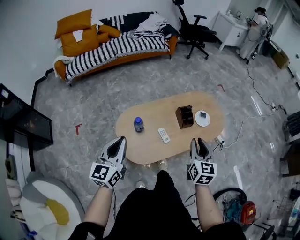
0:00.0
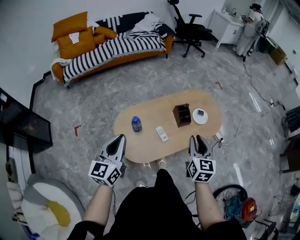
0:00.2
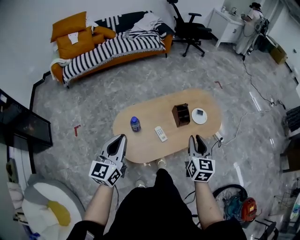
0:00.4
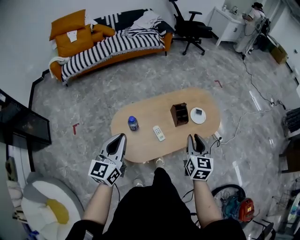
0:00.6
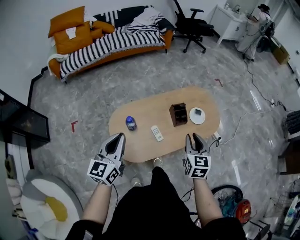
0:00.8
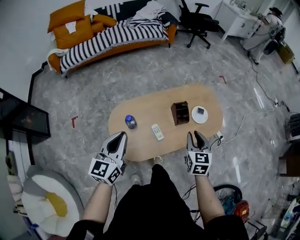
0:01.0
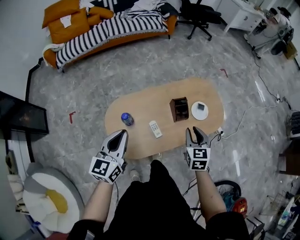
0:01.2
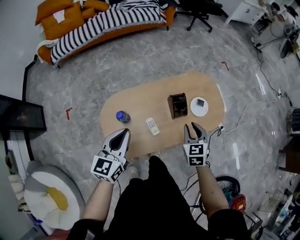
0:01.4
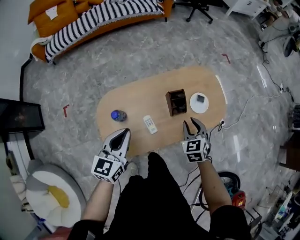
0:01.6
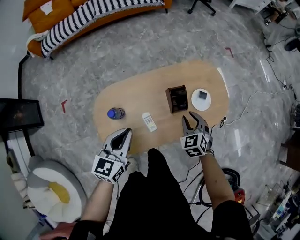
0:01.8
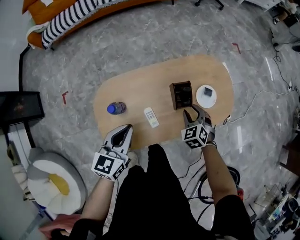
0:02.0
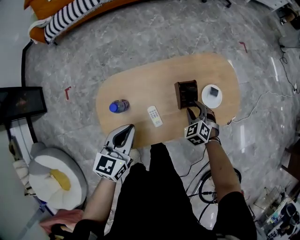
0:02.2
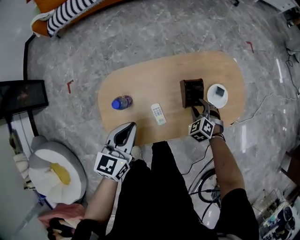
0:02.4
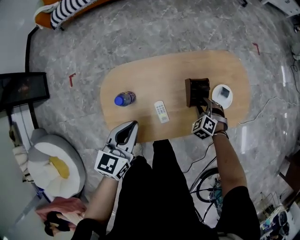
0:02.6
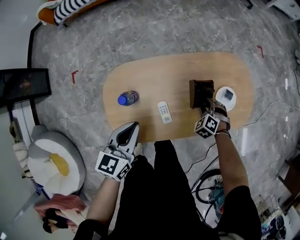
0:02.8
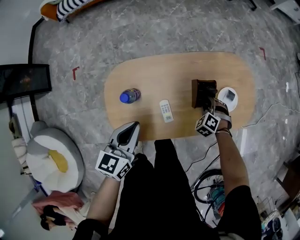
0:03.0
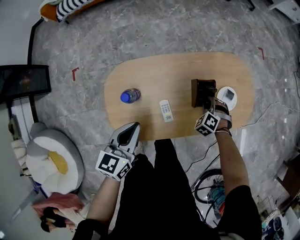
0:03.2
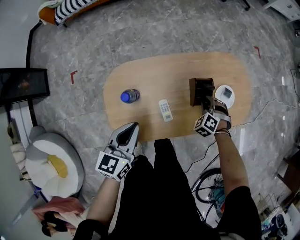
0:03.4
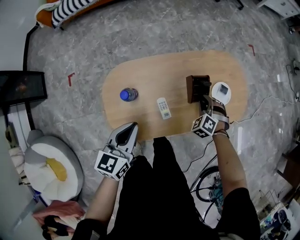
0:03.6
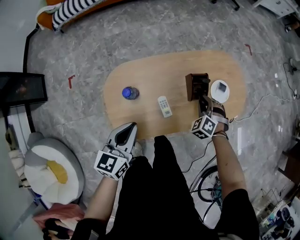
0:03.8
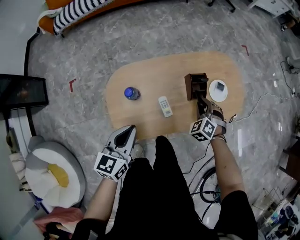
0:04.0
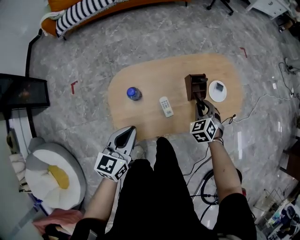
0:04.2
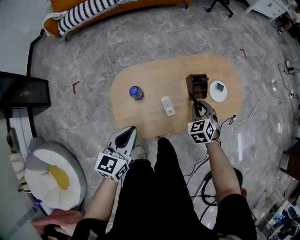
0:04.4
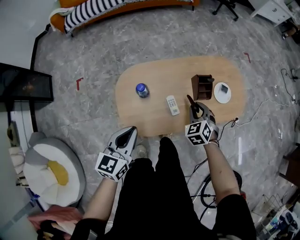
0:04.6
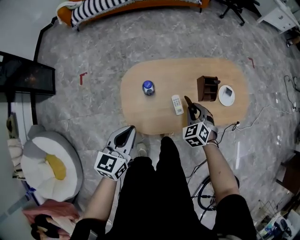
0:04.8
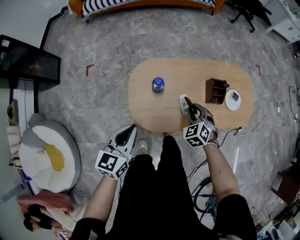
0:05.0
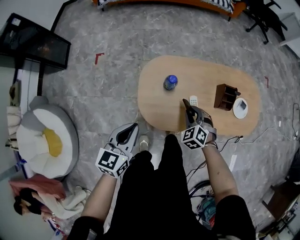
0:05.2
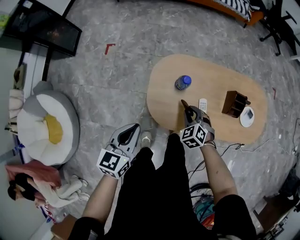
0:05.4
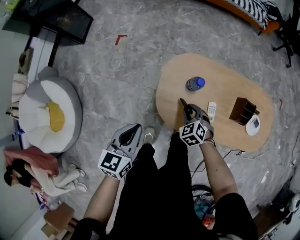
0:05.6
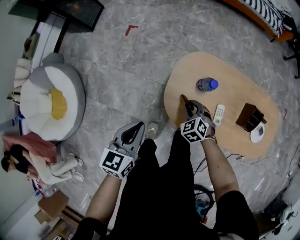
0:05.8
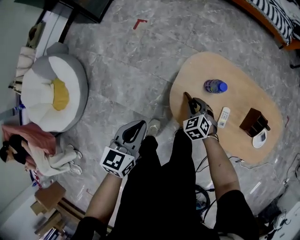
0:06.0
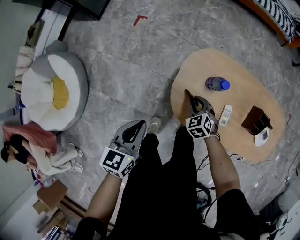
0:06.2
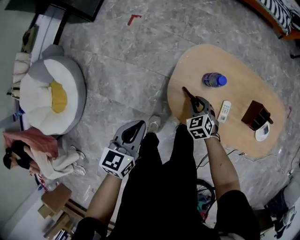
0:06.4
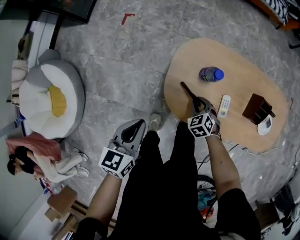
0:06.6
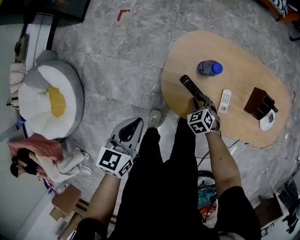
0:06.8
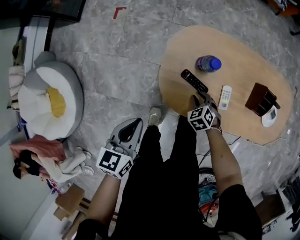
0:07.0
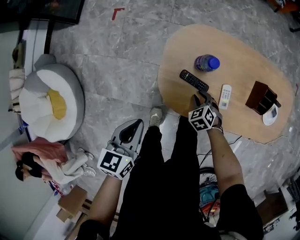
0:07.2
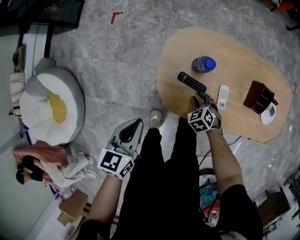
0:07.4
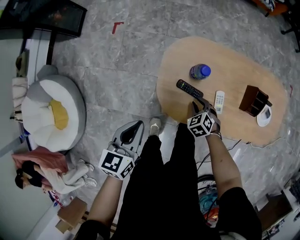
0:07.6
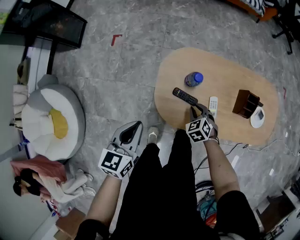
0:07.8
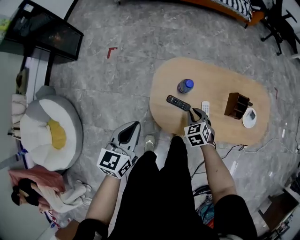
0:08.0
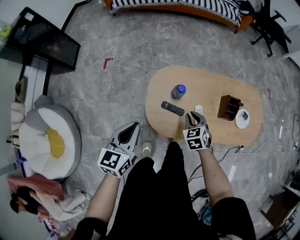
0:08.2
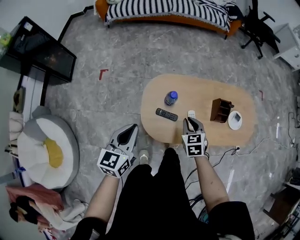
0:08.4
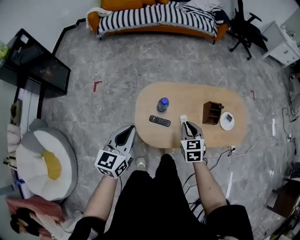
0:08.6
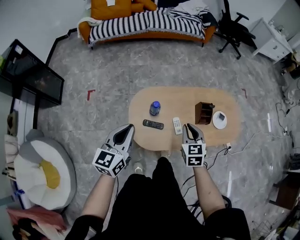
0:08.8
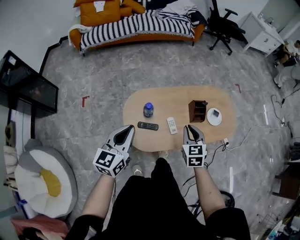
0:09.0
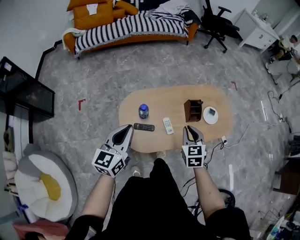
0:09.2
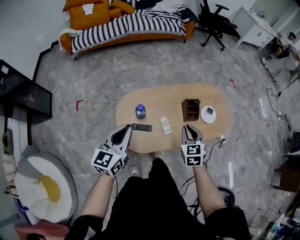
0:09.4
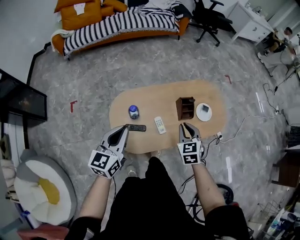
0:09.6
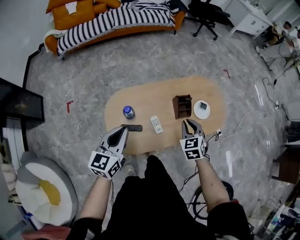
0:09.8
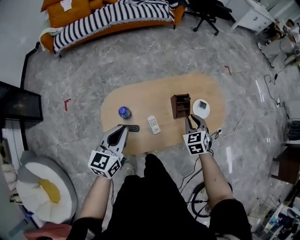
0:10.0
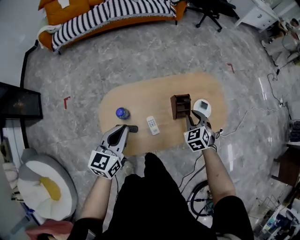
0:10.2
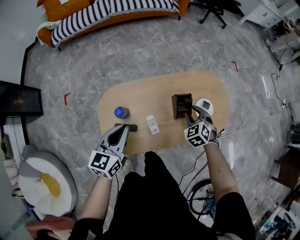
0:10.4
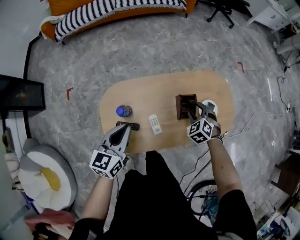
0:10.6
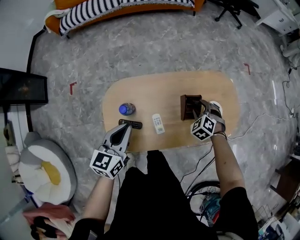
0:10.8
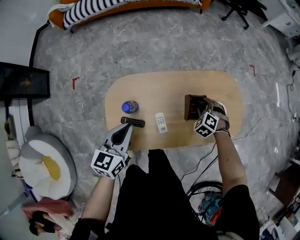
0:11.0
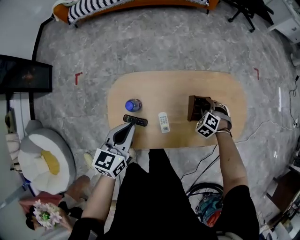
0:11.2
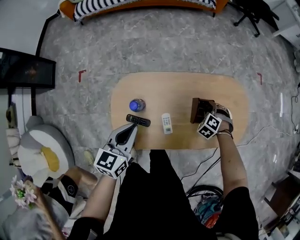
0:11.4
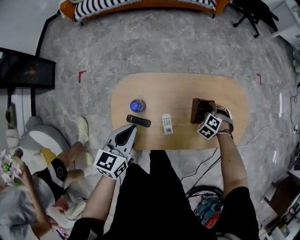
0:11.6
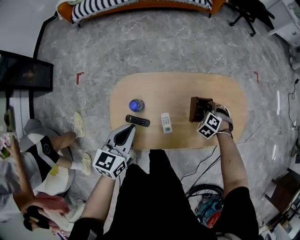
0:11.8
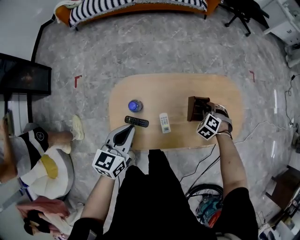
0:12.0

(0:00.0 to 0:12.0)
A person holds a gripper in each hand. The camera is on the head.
0:00.0 - 0:01.6: The left gripper is displaced forward, to the right and downward by about 20 cm; the right gripper is displaced forward and downward by about 25 cm, and turns by roughly 40 degrees.
0:01.6 - 0:03.0: The left gripper shifts approximately 10 cm downward; the right gripper heads downward, covering approximately 20 cm, and rotates around the line of its fingers by approximately 50 degrees, counterclockwise from behind.
0:03.0 - 0:04.4: The right gripper is displaced upward and backward by about 20 cm, and changes its angle by roughly 40 degrees. Meanwhile the left gripper goes roughly 10 cm backward and upward.
0:04.4 - 0:06.0: The right gripper shifts by some 40 cm, and changes its angle by about 50 degrees. The left gripper moves approximately 25 cm, and turns by roughly 40 degrees.
0:06.0 - 0:07.6: The right gripper moves to the right and downward, about 10 cm. Meanwhile the left gripper ends up roughly 5 cm from where it was.
0:07.6 - 0:09.0: The right gripper is displaced upward by roughly 30 cm, and turns by about 50 degrees. The left gripper heads upward, covering approximately 20 cm, and rotates roughly 30 degrees.
0:09.0 - 0:10.4: The grippers both shift forward, to the right and downward by about 20 cm. The right gripper rotates about 30 degrees.
0:10.4 - 0:12.0: The right gripper travels downward by roughly 10 cm, and swivels approximately 30 degrees.

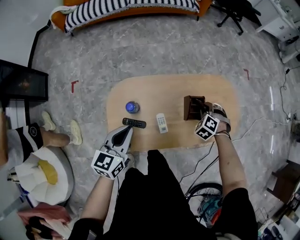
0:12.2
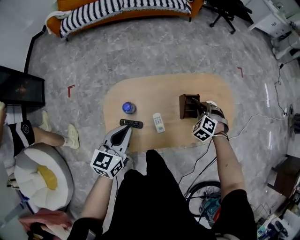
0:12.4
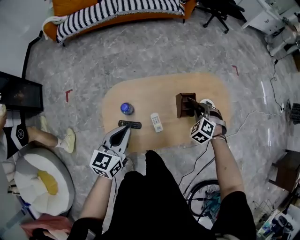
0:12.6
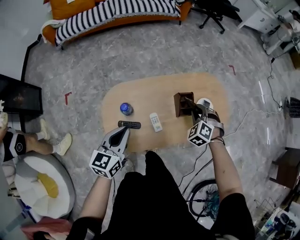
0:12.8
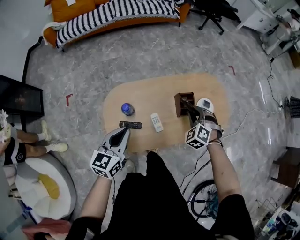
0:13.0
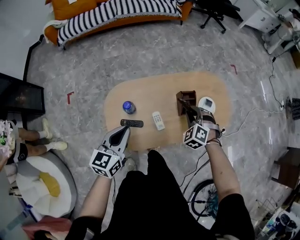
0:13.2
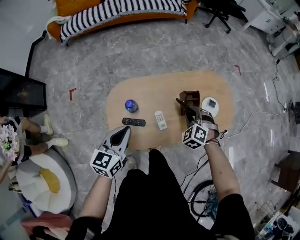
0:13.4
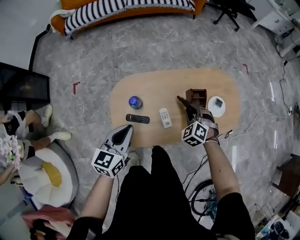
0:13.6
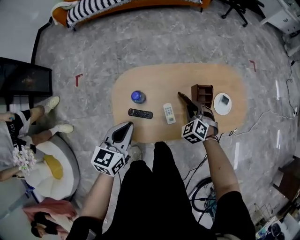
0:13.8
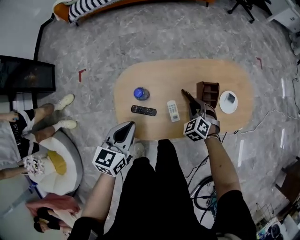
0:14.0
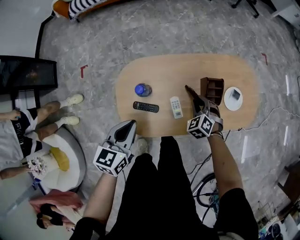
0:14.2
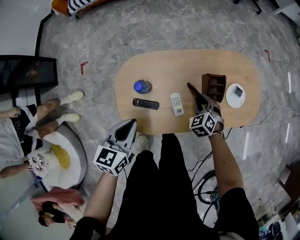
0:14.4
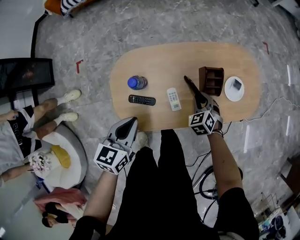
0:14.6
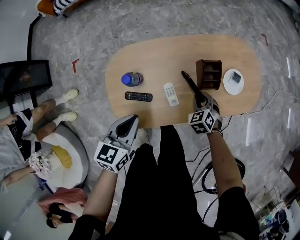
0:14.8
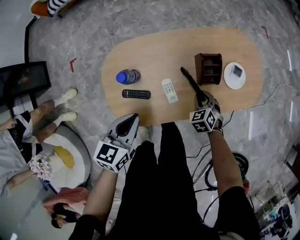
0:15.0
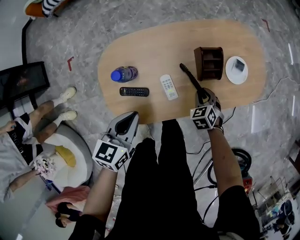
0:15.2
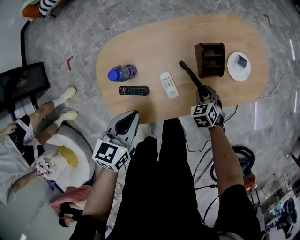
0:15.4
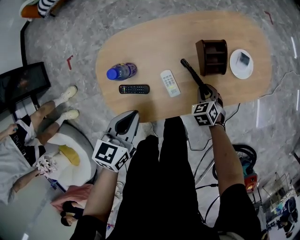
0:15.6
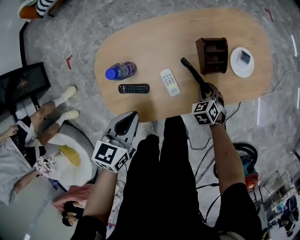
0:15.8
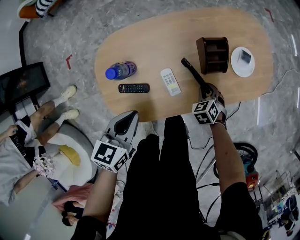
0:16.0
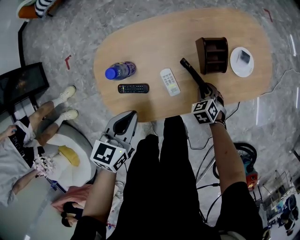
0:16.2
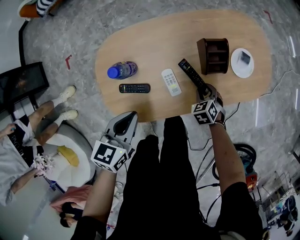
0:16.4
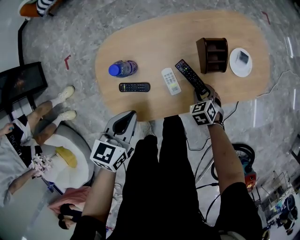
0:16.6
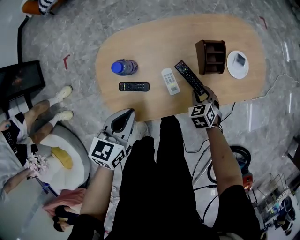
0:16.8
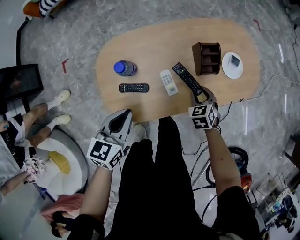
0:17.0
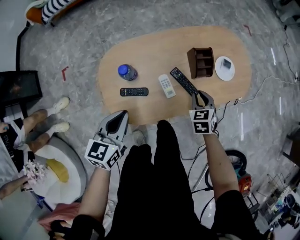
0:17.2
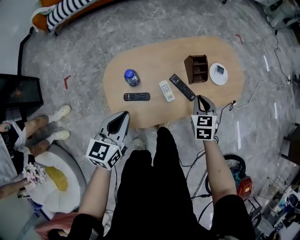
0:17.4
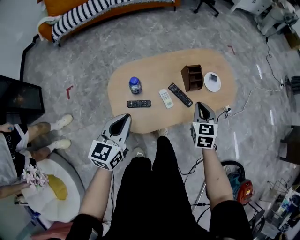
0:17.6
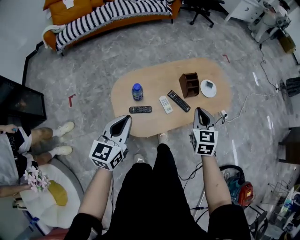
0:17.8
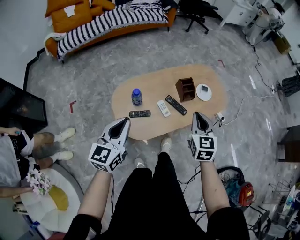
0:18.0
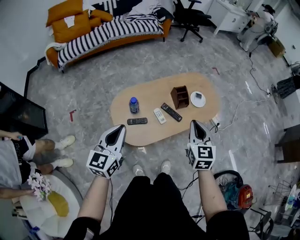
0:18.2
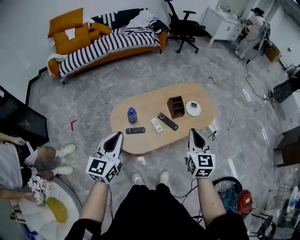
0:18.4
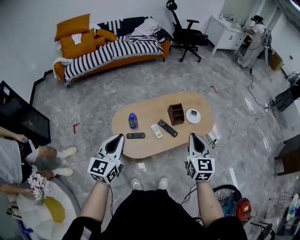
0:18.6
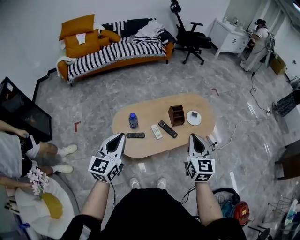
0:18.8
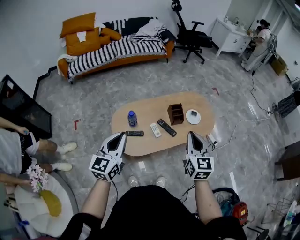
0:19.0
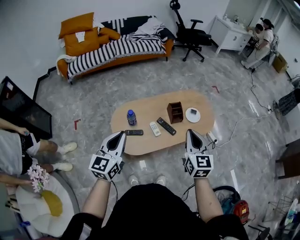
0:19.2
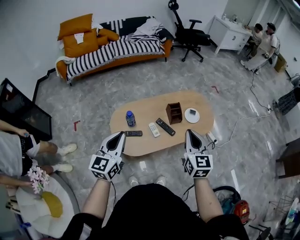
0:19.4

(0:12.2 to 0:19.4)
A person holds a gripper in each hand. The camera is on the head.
0:12.2 - 0:13.6: The right gripper goes about 10 cm backward and to the left.
0:13.6 - 0:15.0: The left gripper shifts about 10 cm downward and to the right. The right gripper goes roughly 15 cm downward and to the right, and swivels about 30 degrees.
0:15.0 - 0:16.6: The right gripper travels downward by approximately 5 cm.
0:16.6 - 0:18.0: The right gripper travels upward by approximately 40 cm, tips its fingers upward by roughly 40 degrees, and closes its fingers. The left gripper travels upward and backward by approximately 25 cm, and rotates roughly 30 degrees.
0:18.0 - 0:19.4: Both grippers travel together upward and to the right, roughly 10 cm.

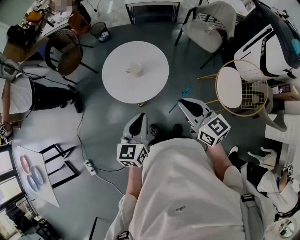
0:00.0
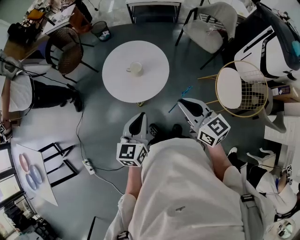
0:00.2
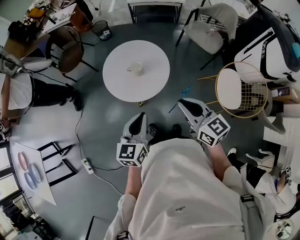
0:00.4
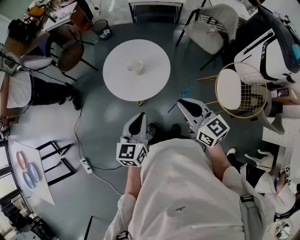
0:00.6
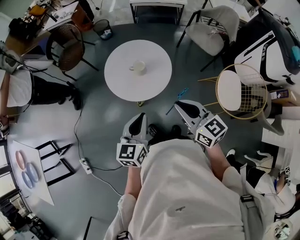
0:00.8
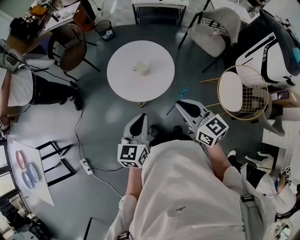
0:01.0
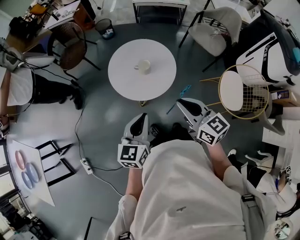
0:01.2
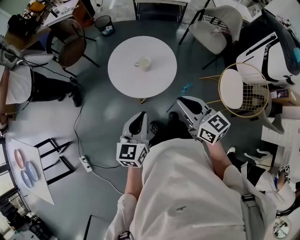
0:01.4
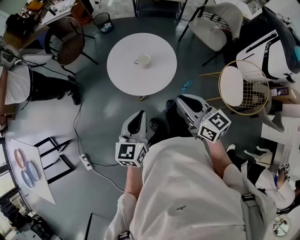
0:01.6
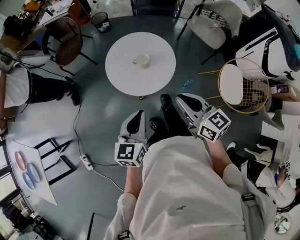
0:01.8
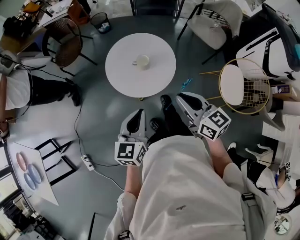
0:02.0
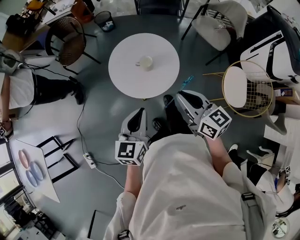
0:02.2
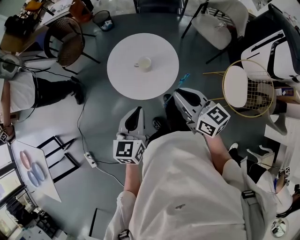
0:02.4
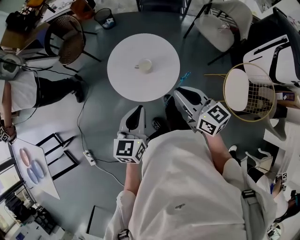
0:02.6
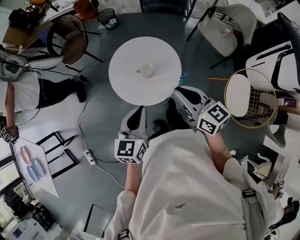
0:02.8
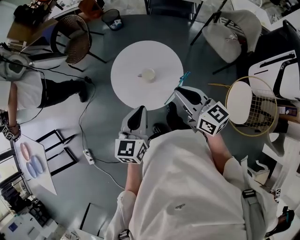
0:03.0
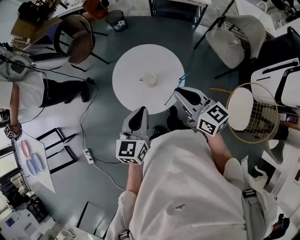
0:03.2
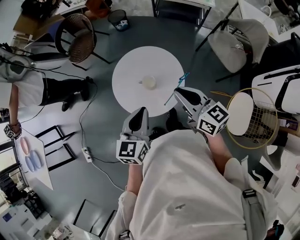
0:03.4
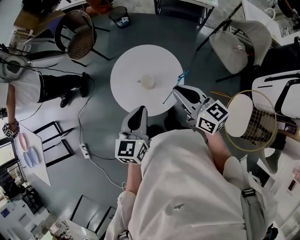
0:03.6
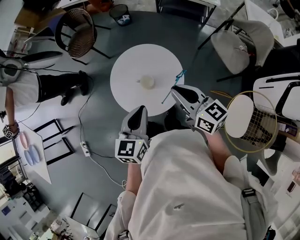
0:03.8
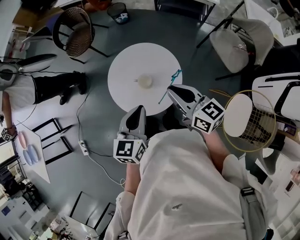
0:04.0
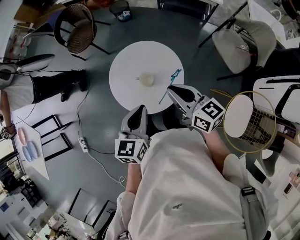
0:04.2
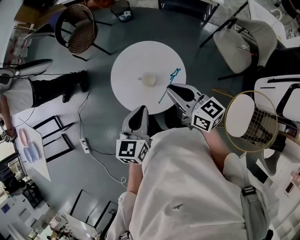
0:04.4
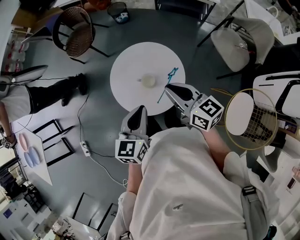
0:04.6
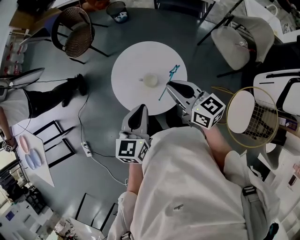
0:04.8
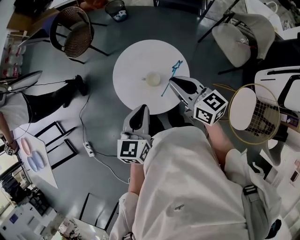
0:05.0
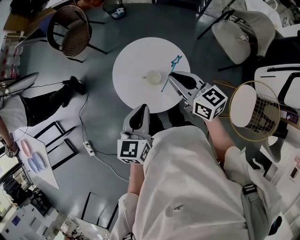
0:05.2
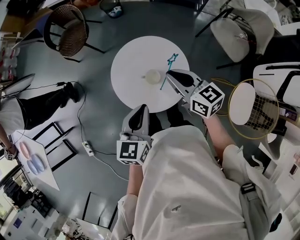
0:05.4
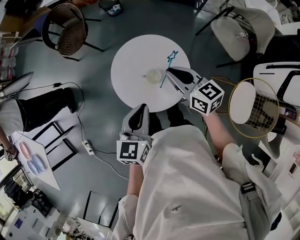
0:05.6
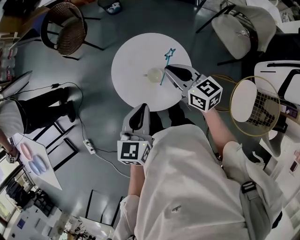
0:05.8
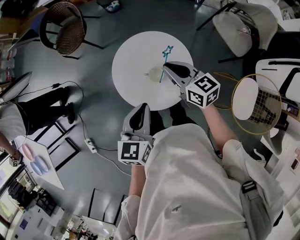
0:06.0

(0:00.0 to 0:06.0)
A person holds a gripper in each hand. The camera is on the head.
0:00.0 - 0:01.6: The grippers both shift to the left by some 10 cm.
0:01.6 - 0:03.0: The left gripper travels forward and to the right by about 15 cm, while the right gripper shifts roughly 15 cm forward.
0:03.0 - 0:04.4: The right gripper shifts roughly 10 cm forward; the left gripper ends up roughly 5 cm from where it was.
0:04.4 - 0:06.0: The left gripper goes roughly 10 cm to the left and forward; the right gripper travels forward, downward and to the left by roughly 15 cm.
